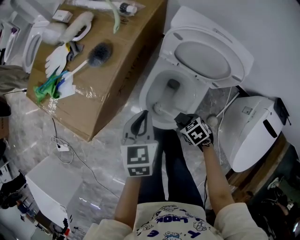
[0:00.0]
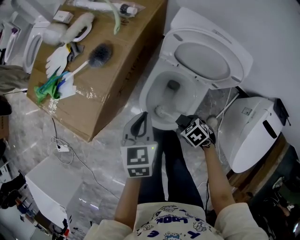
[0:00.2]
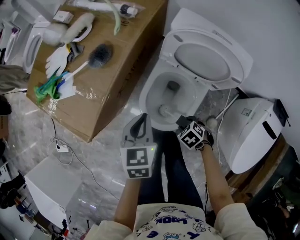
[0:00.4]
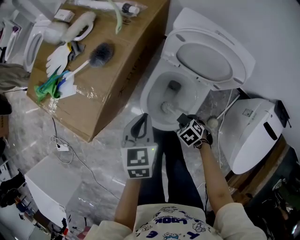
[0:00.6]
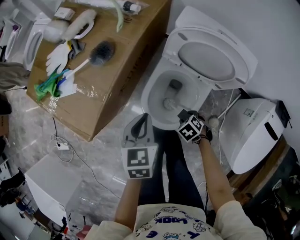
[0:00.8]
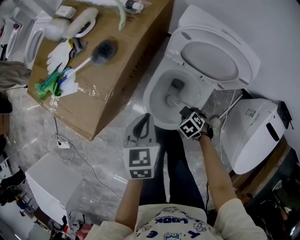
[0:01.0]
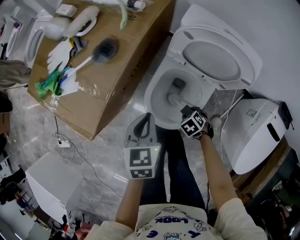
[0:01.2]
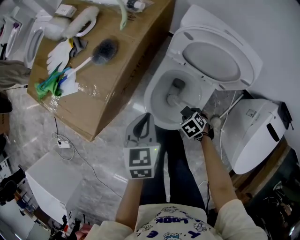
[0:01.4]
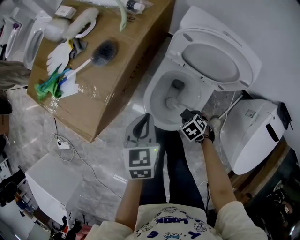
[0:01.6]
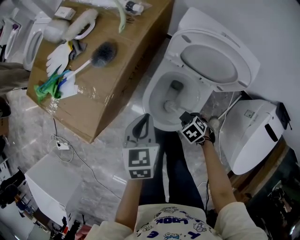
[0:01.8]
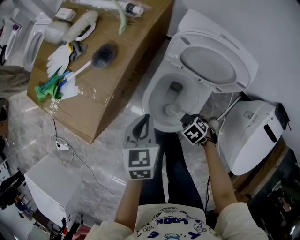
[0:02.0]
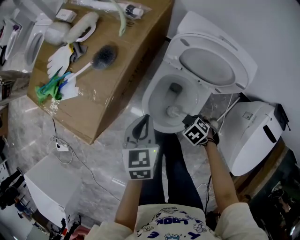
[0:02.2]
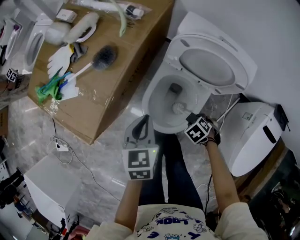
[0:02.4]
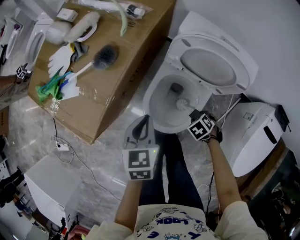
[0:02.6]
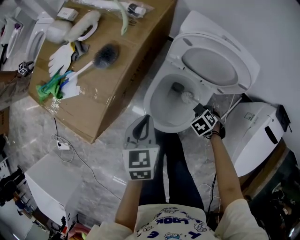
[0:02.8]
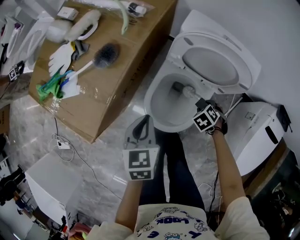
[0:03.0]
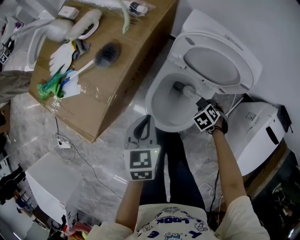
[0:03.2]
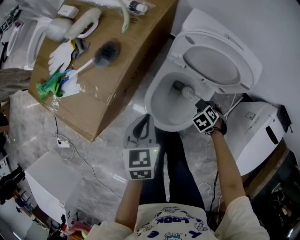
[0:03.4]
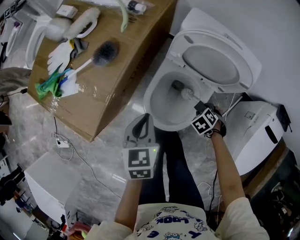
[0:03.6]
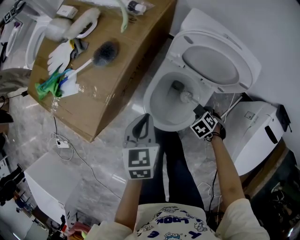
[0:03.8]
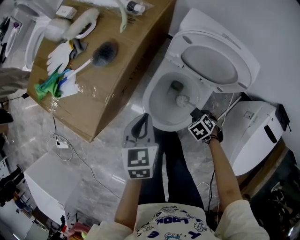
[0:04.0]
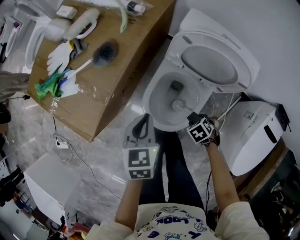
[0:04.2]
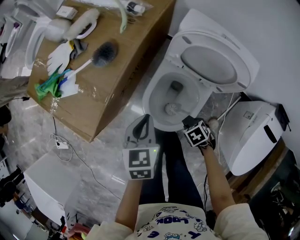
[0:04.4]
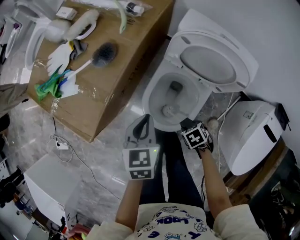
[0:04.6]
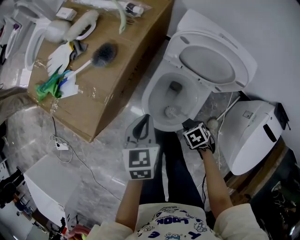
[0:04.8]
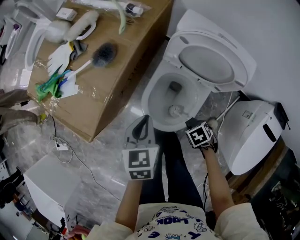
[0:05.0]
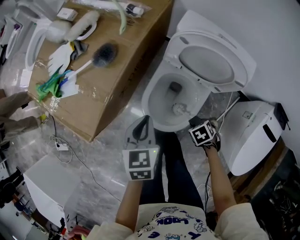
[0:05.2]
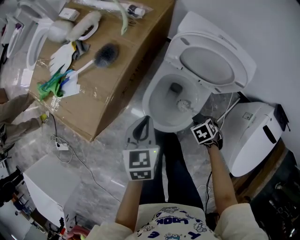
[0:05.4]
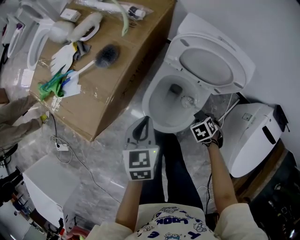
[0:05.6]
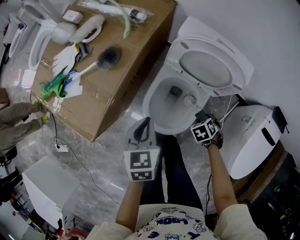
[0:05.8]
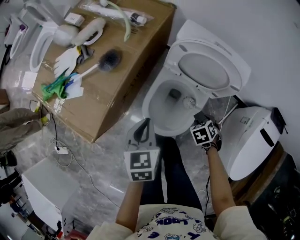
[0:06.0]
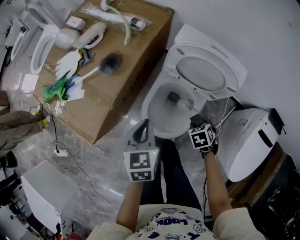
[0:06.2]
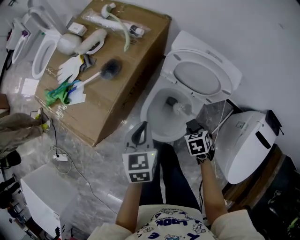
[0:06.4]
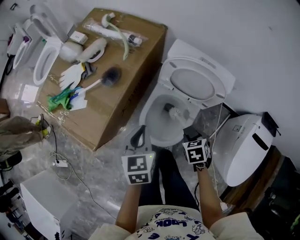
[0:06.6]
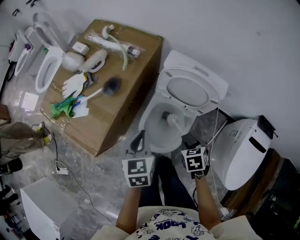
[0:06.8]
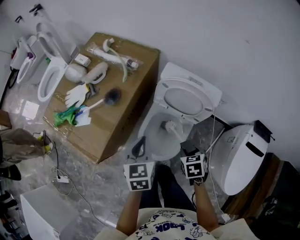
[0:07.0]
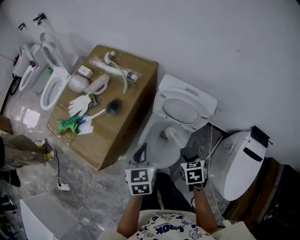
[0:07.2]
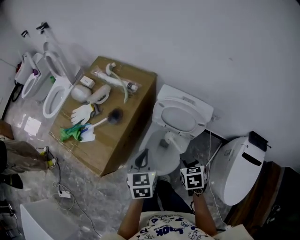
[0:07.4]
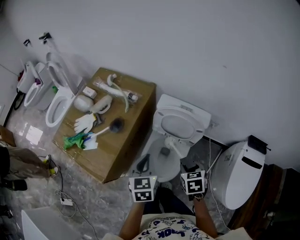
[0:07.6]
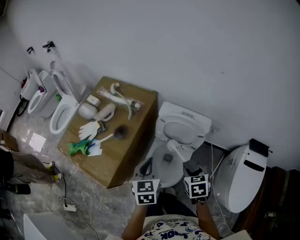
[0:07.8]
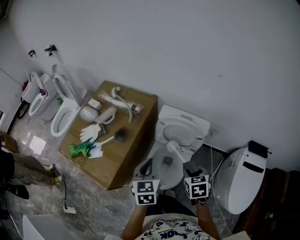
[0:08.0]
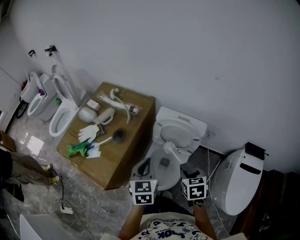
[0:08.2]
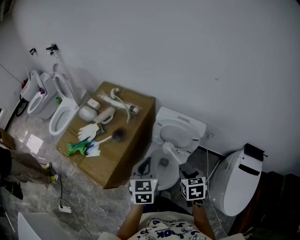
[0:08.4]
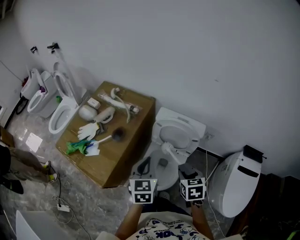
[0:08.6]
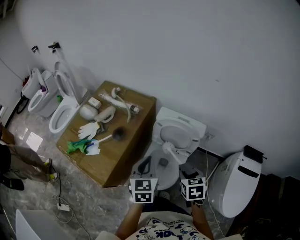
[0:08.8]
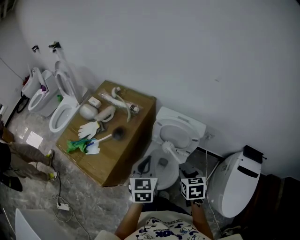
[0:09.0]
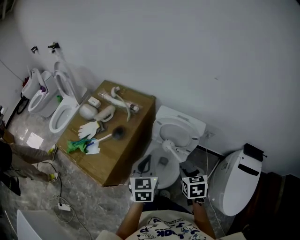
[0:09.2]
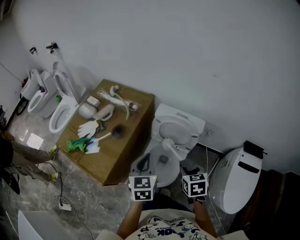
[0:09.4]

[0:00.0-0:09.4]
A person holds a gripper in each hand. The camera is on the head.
0:00.0 to 0:01.6: The right gripper moves roughly 5 cm.
0:01.6 to 0:03.2: The right gripper moves about 10 cm.
0:03.2 to 0:04.8: The right gripper moves approximately 15 cm, and changes its angle by some 20 degrees.
0:04.8 to 0:06.2: The right gripper shifts by approximately 10 cm.
0:06.2 to 0:07.8: The left gripper travels upward by about 15 cm; the right gripper shifts approximately 25 cm upward, and turns by approximately 30 degrees.
0:07.8 to 0:09.4: The grippers make only small movements.

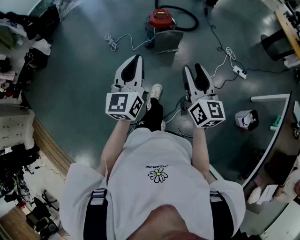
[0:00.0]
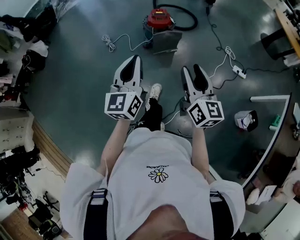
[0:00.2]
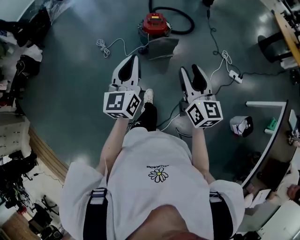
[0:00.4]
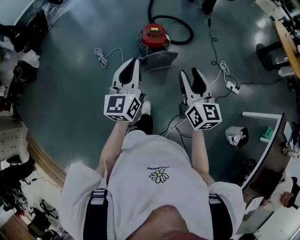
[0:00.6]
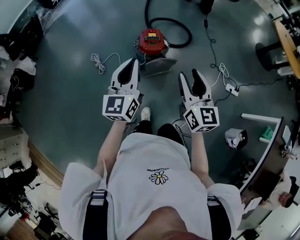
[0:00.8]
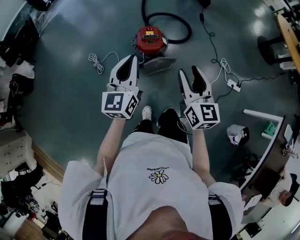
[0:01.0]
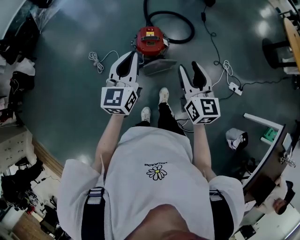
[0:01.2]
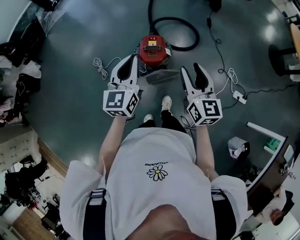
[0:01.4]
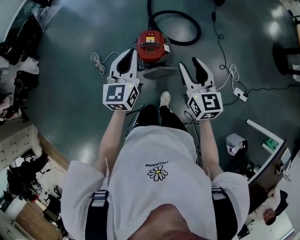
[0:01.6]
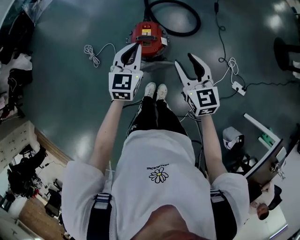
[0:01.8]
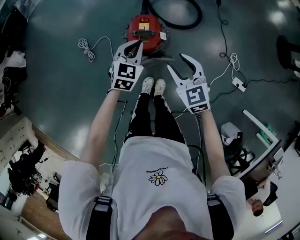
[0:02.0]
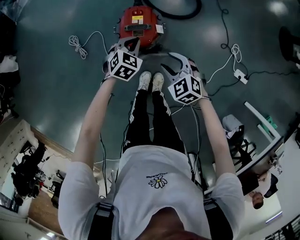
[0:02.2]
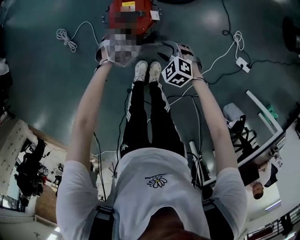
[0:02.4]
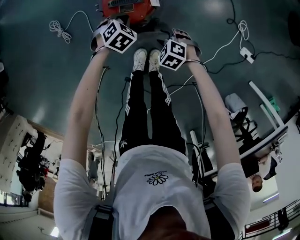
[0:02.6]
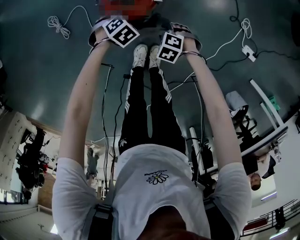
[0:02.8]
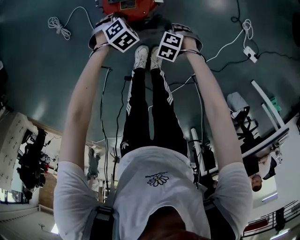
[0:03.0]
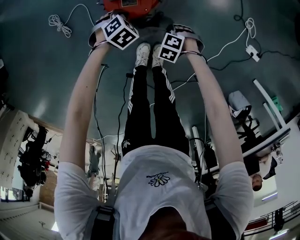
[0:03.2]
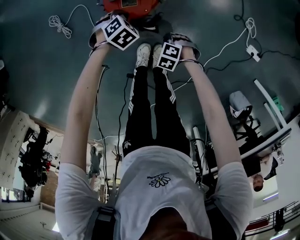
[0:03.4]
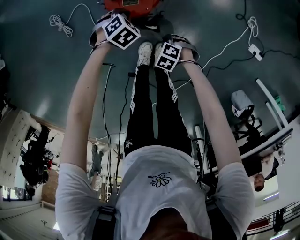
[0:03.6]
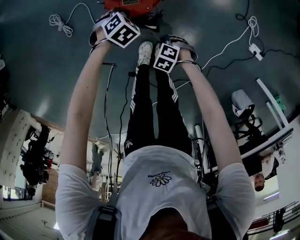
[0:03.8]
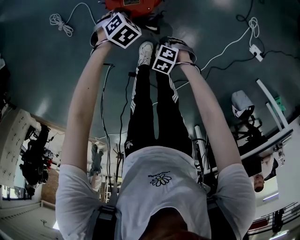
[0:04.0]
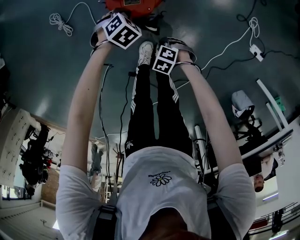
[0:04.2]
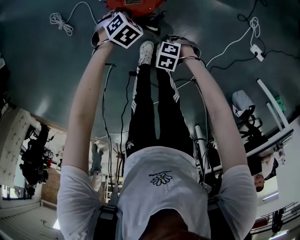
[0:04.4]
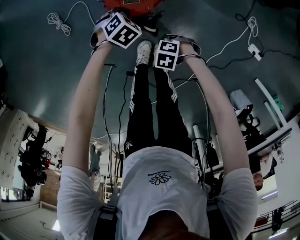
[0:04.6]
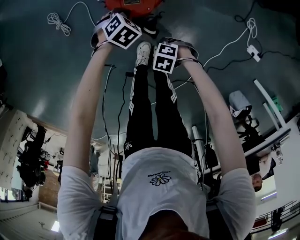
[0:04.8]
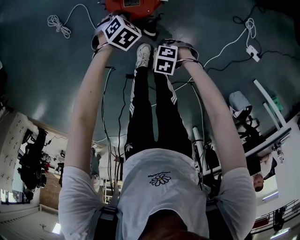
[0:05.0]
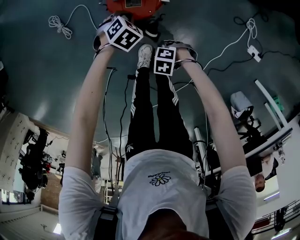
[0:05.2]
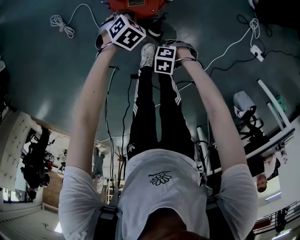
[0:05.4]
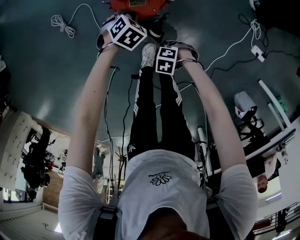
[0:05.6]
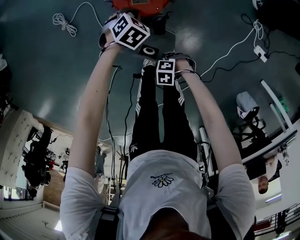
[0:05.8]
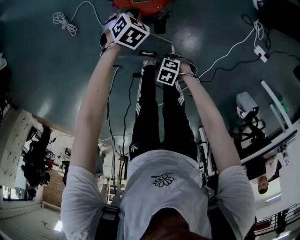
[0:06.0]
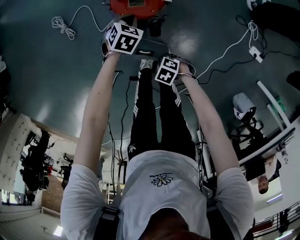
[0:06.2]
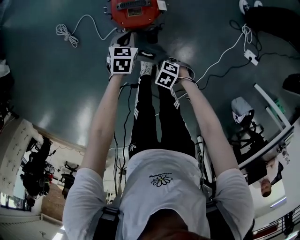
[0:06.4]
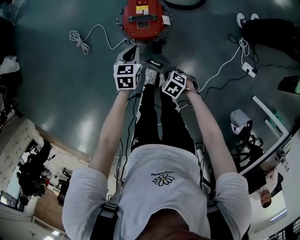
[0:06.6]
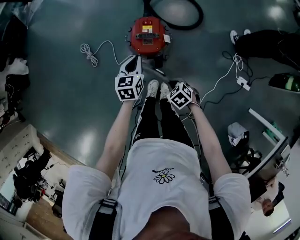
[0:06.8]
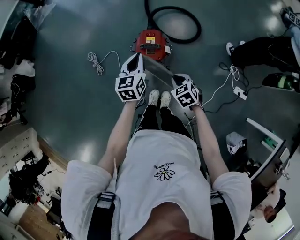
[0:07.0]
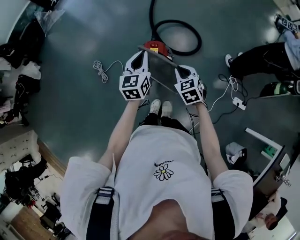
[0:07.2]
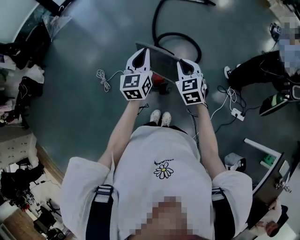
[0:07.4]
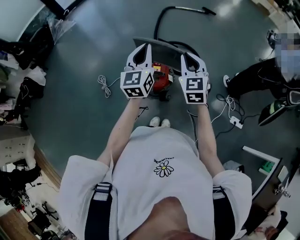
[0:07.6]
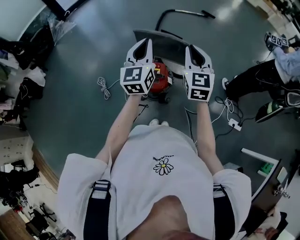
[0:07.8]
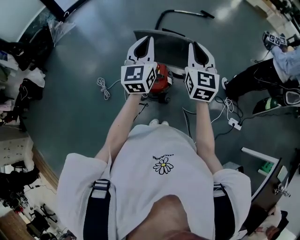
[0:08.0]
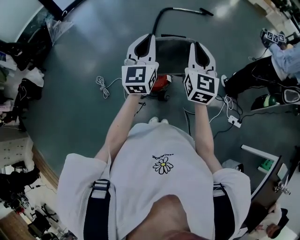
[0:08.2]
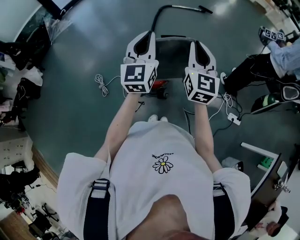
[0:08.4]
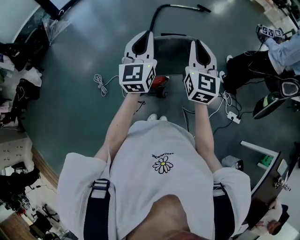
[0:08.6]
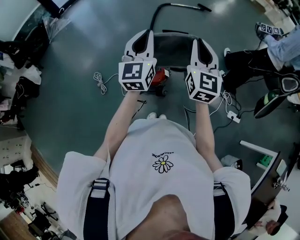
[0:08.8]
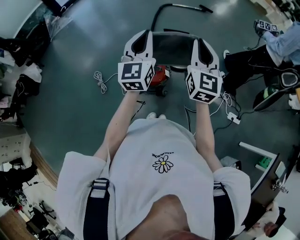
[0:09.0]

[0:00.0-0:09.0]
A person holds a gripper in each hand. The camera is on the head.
0:00.0 to 0:01.6: The pair of grippers is taken forward, about 60 cm.
0:01.6 to 0:03.0: The grippers both shift downward by roughly 50 cm. The left gripper angles its fingers downward, by approximately 60 degrees. Meanwhile the right gripper points its fingers approximately 70 degrees further downward.
0:03.0 to 0:04.4: The right gripper ends up roughly 10 cm from where it was, and closes up.
0:04.4 to 0:06.0: The right gripper ends up roughly 10 cm from where it was.
0:06.0 to 0:07.6: Both grippers move upward, some 60 cm. The left gripper tips its fingers upward by about 70 degrees, while the right gripper tips its fingers upward by approximately 50 degrees.
0:07.6 to 0:09.0: The left gripper moves upward, some 5 cm, while the right gripper travels upward by roughly 10 cm, and swivels roughly 20 degrees.

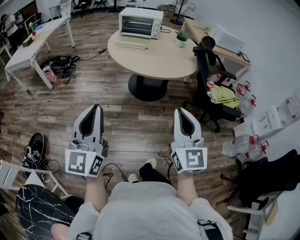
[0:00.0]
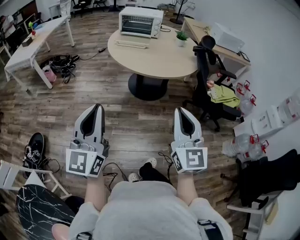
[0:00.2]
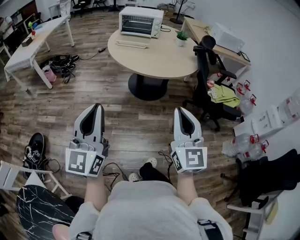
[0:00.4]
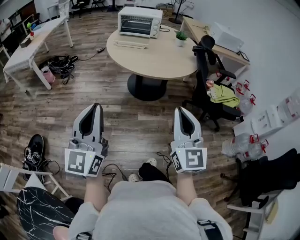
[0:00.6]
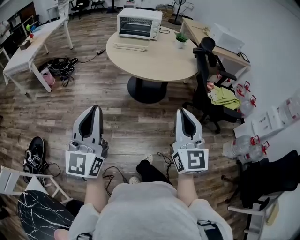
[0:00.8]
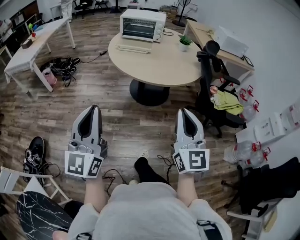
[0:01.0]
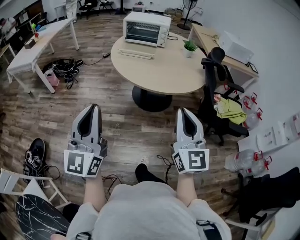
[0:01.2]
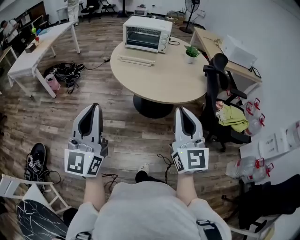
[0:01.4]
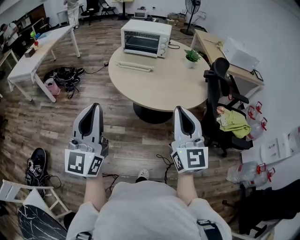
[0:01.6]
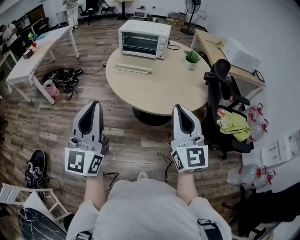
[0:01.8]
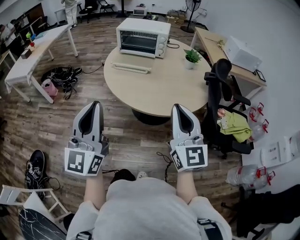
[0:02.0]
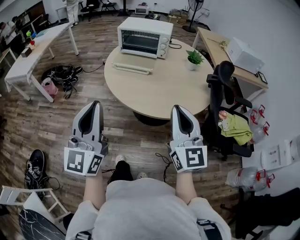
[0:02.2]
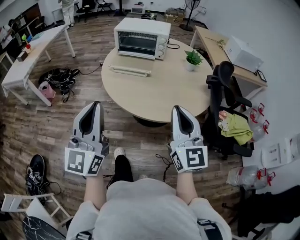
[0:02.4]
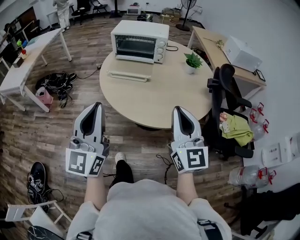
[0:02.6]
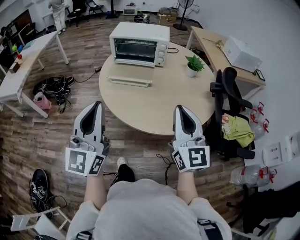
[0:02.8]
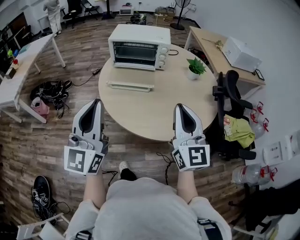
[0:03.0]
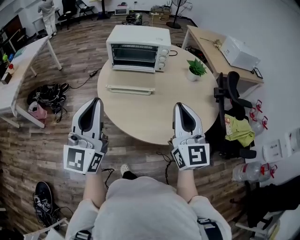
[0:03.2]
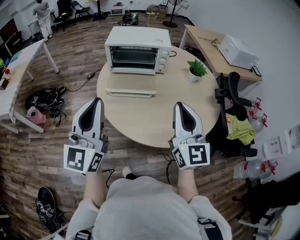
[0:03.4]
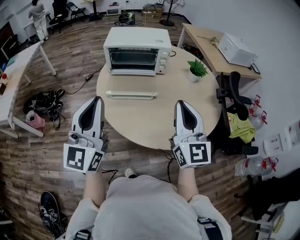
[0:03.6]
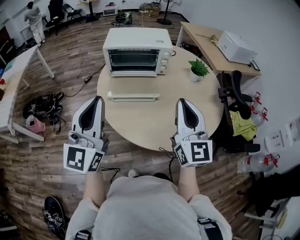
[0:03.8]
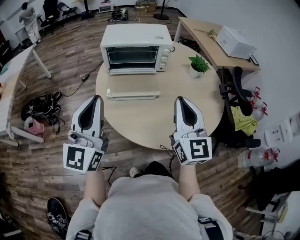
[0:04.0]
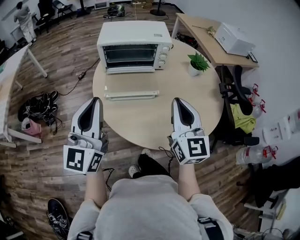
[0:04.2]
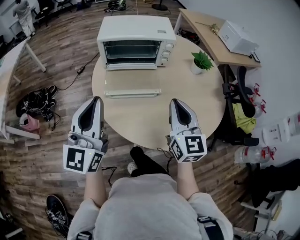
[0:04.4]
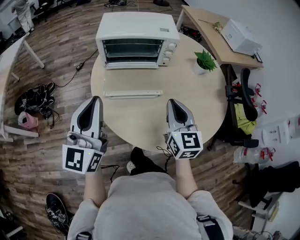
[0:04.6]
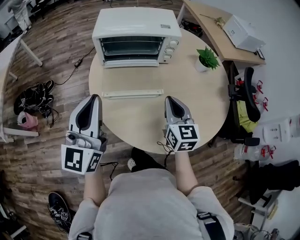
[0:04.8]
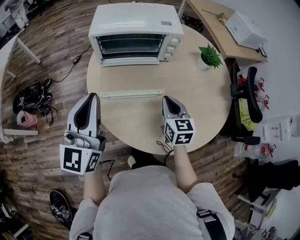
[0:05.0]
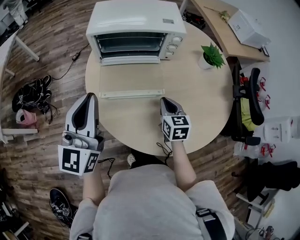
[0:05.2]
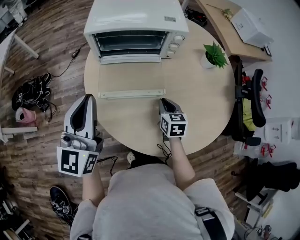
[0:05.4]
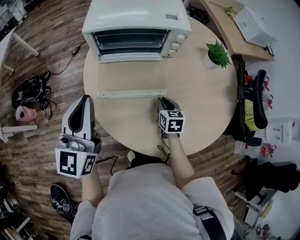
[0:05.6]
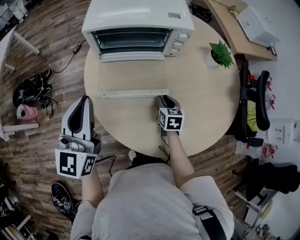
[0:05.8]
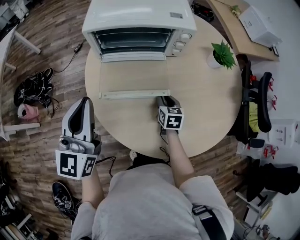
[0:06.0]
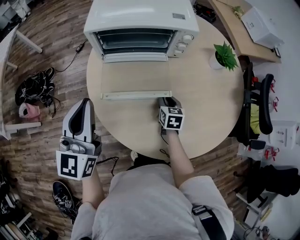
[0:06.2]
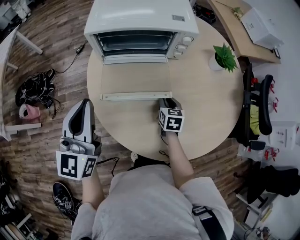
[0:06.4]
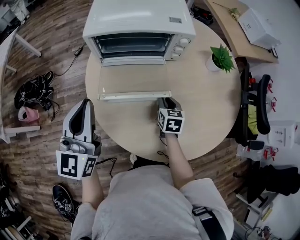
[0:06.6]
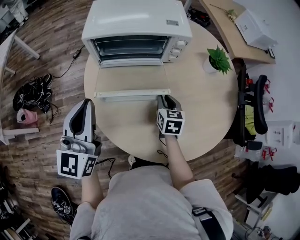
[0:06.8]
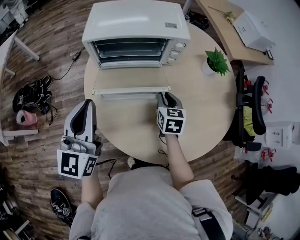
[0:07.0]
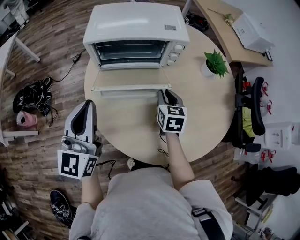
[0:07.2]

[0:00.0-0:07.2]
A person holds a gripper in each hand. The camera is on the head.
0:00.0 to 0:01.4: Both grippers travel together forward, some 20 cm.
0:01.4 to 0:02.8: The grippers both shift forward by some 25 cm.
0:02.8 to 0:04.4: The grippers both shift forward and to the left by roughly 25 cm.
0:04.4 to 0:05.8: The right gripper goes approximately 35 cm downward and forward, and tips its fingers downward by some 40 degrees. Meanwhile the left gripper moves forward and downward, some 15 cm.
0:05.8 to 0:07.2: The right gripper is displaced upward by approximately 10 cm.
